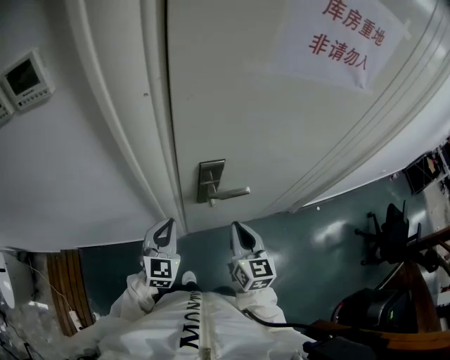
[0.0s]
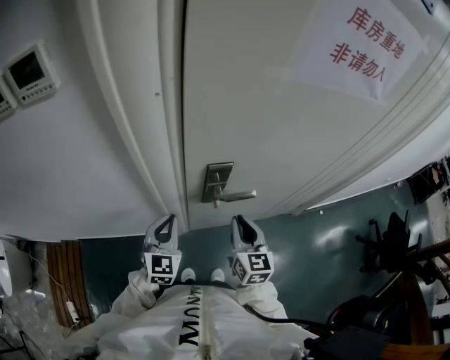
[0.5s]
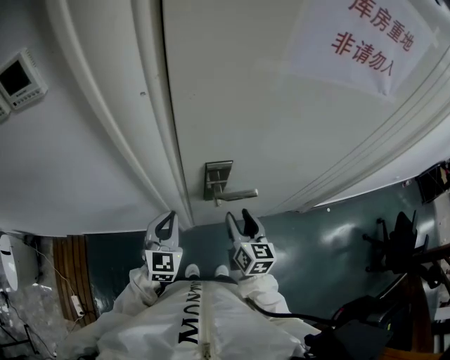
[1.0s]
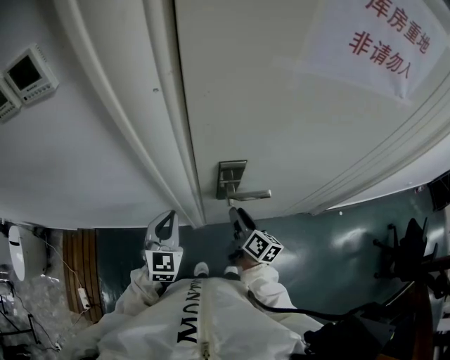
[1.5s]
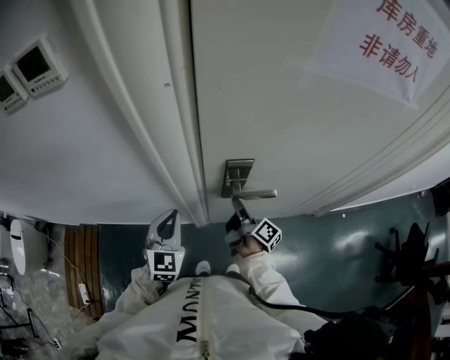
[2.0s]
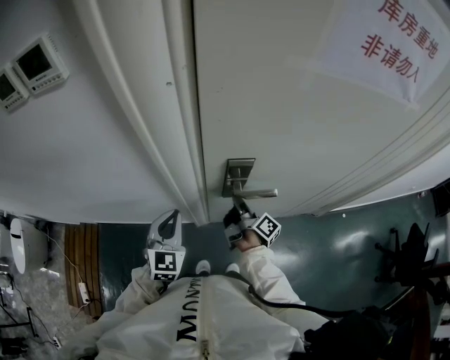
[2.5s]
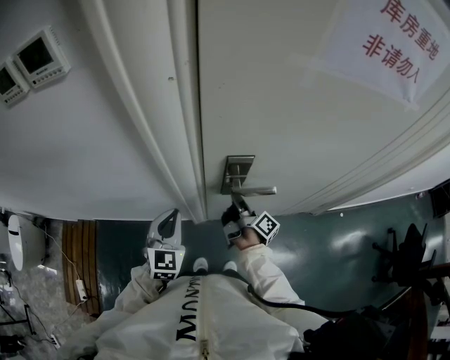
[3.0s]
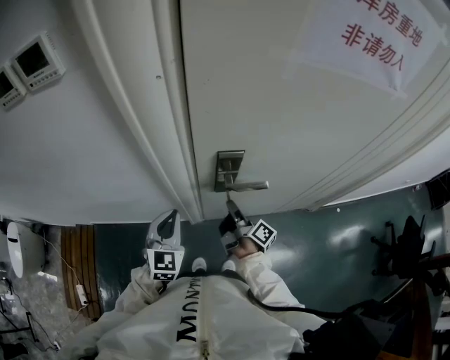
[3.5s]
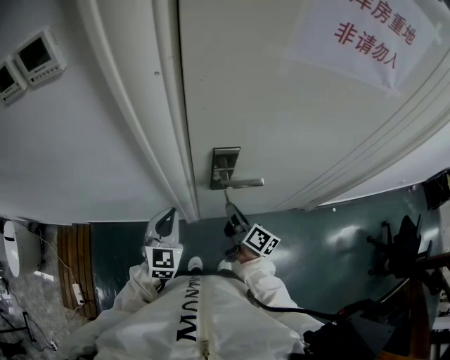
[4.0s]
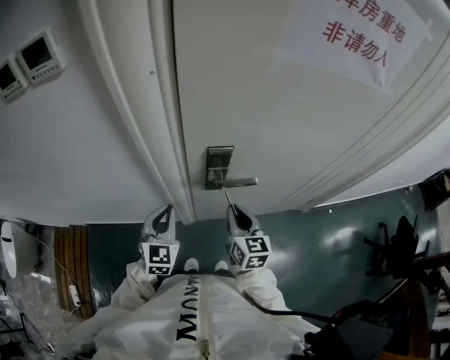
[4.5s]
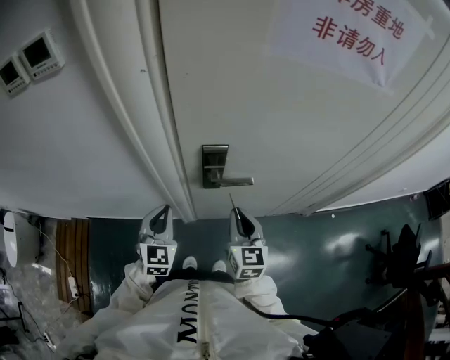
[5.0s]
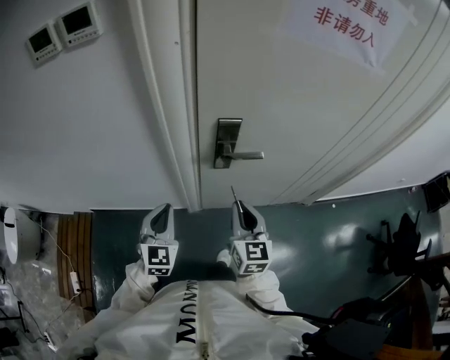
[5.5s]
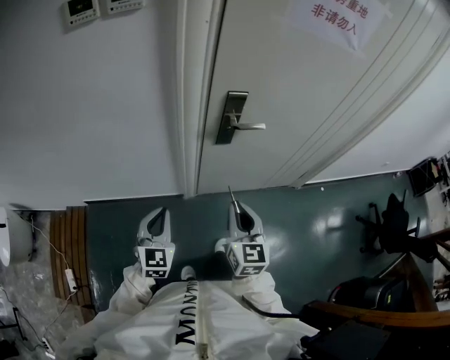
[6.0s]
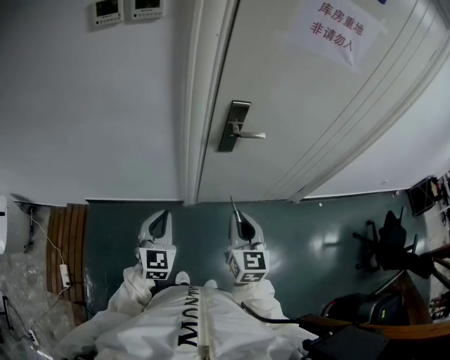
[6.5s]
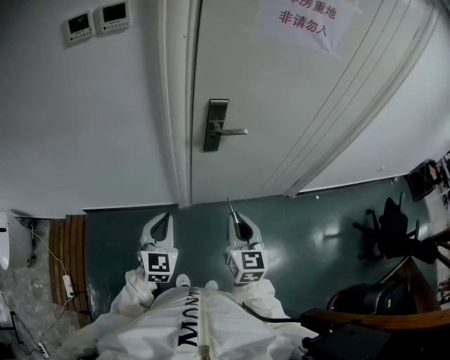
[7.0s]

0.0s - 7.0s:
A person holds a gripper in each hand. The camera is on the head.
0.0s - 2.0s: The right gripper shifts approximately 15 cm downward and forward, twists about 70 degrees clockwise, seen from behind, and opens.
2.0s - 3.5s: The right gripper closes its fingers.
3.5s - 5.0s: The right gripper goes approximately 10 cm upward and backward, and rolls counterclockwise, seen from behind, by roughly 80 degrees.
5.0s - 7.0s: The grippers both shift backward by approximately 25 cm.

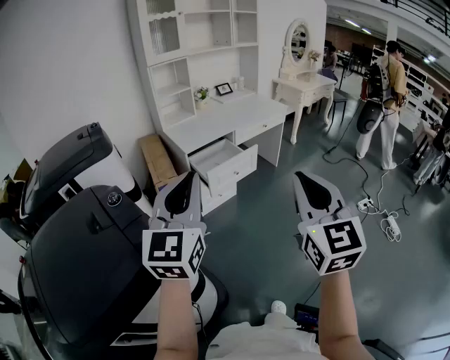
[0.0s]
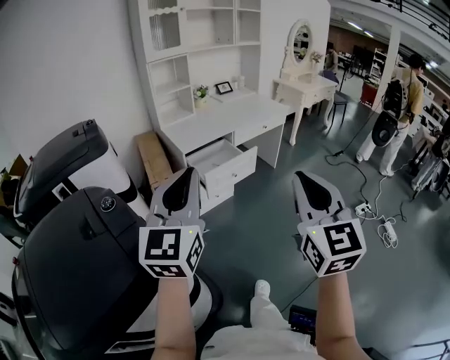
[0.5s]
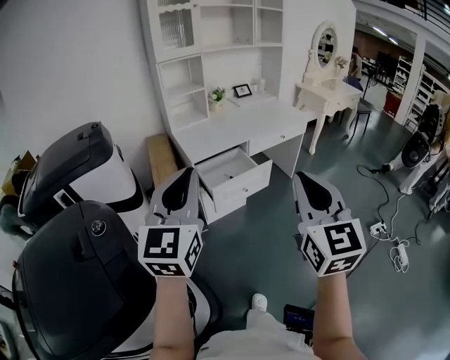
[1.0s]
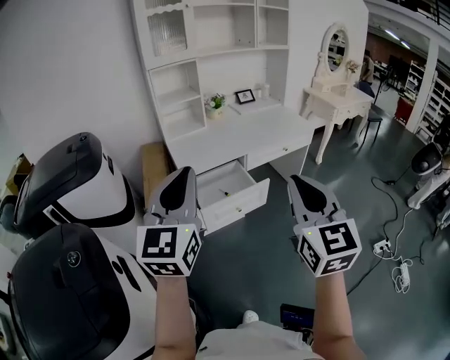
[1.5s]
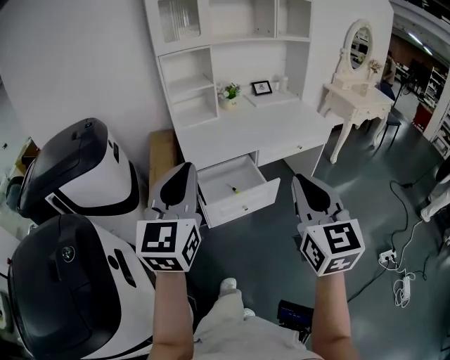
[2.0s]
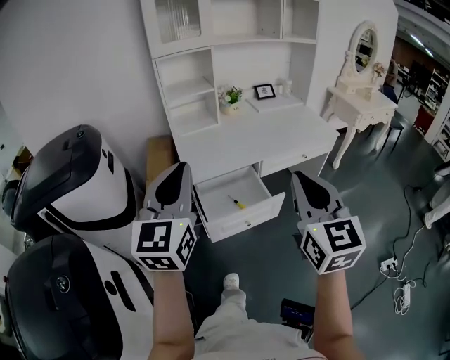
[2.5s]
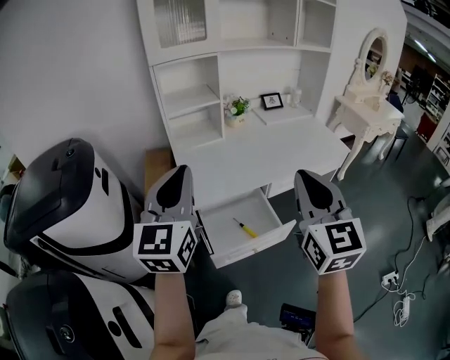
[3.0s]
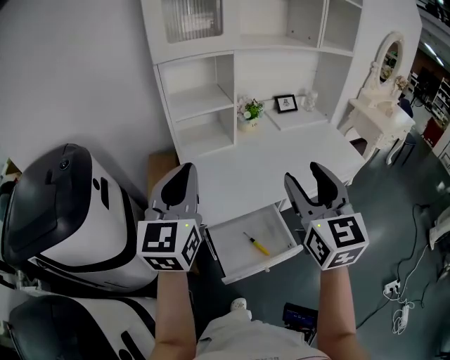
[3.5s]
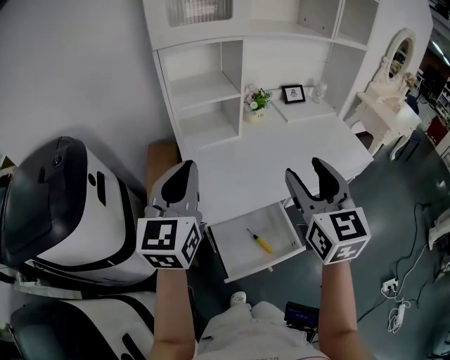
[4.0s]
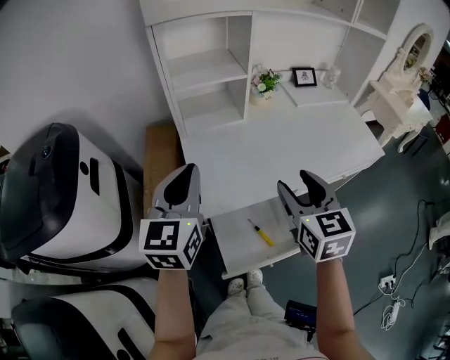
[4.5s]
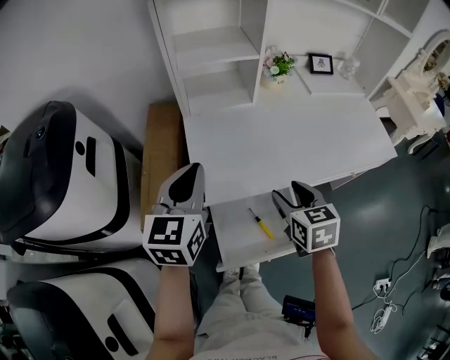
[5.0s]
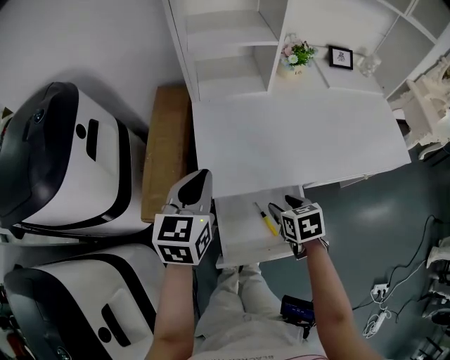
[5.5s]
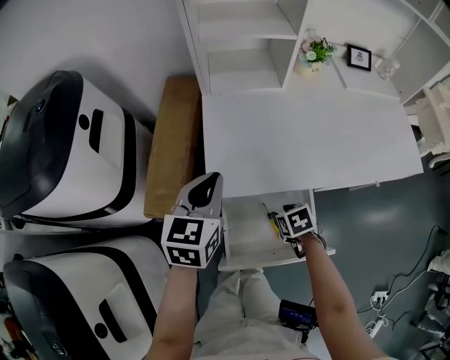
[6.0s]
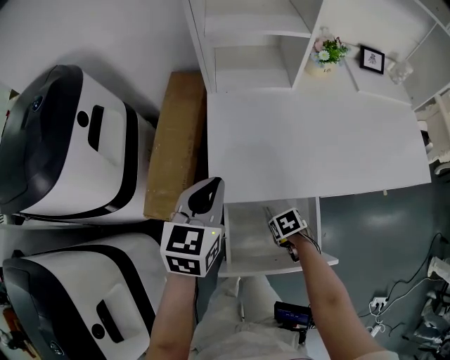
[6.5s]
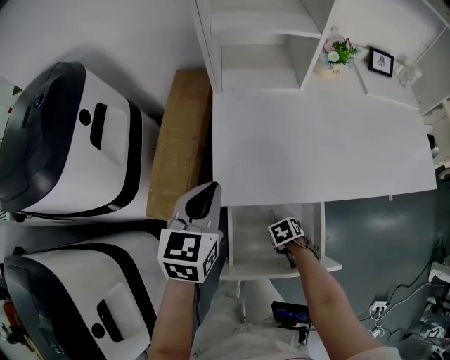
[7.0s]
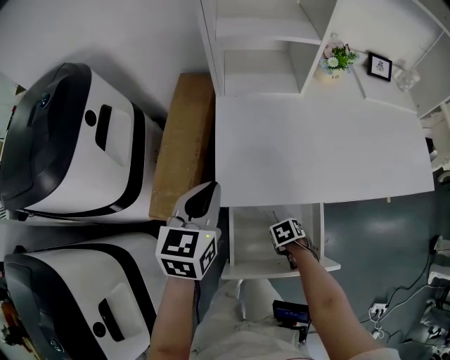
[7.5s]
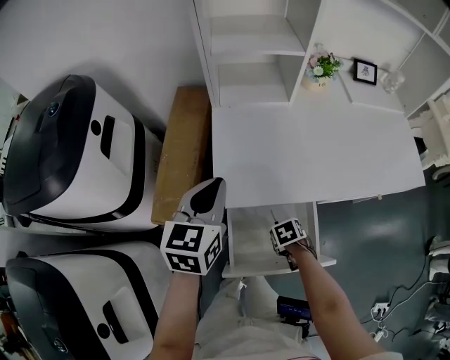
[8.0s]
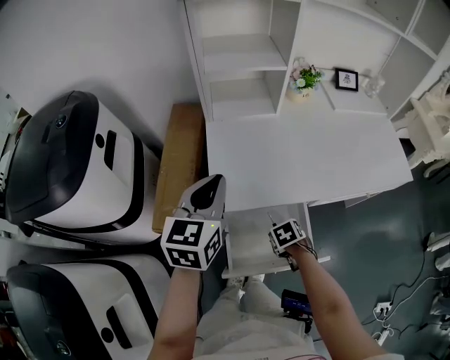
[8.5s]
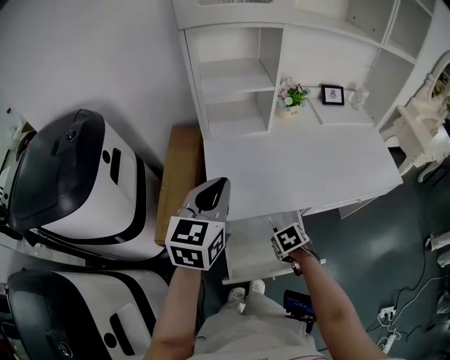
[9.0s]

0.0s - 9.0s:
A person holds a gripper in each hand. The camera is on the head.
0.0s - 2.0s: The grippers both shift forward by roughly 35 cm.
2.0s - 4.5s: The pair of grippers is taken forward, about 40 cm. The right gripper turns by some 20 degrees, and opens its fingers.
4.5s - 7.0s: The right gripper travels downward by approximately 50 cm, tilts its fingers some 60 degrees downward, and closes its fingers, while the left gripper moves downward, approximately 20 cm, and rotates roughly 20 degrees.
7.0s - 9.0s: The grippers both shift upward by some 15 cm.

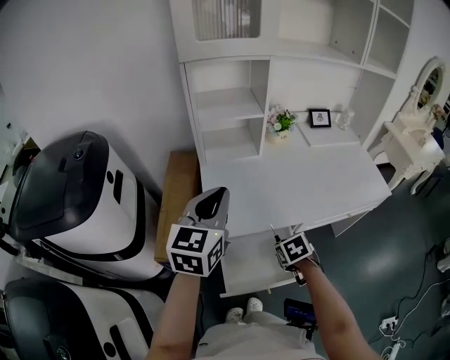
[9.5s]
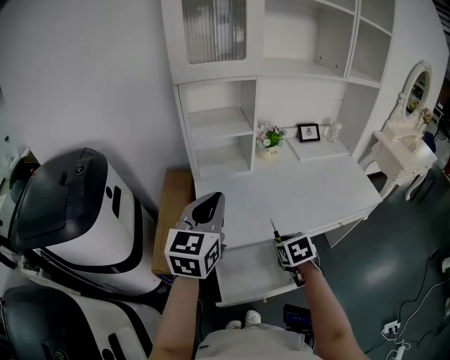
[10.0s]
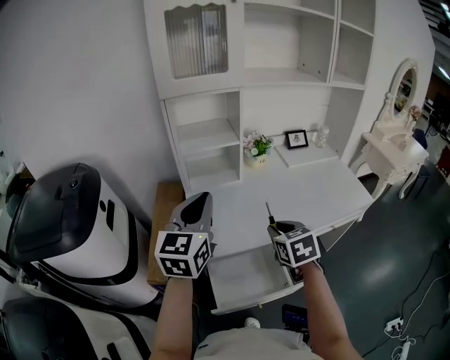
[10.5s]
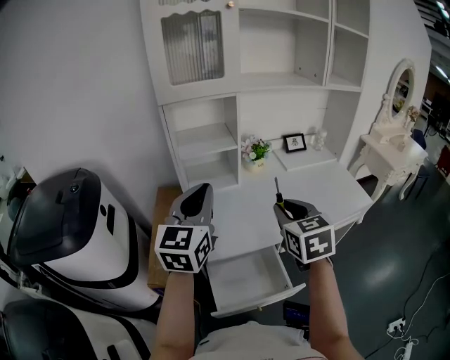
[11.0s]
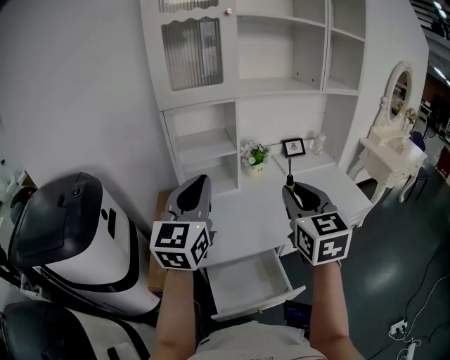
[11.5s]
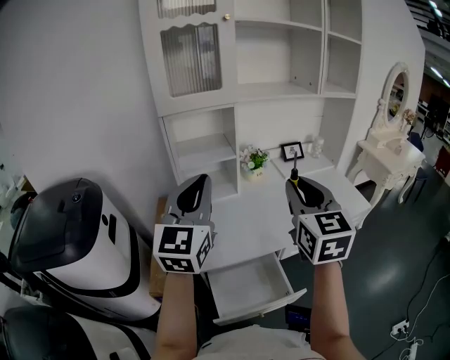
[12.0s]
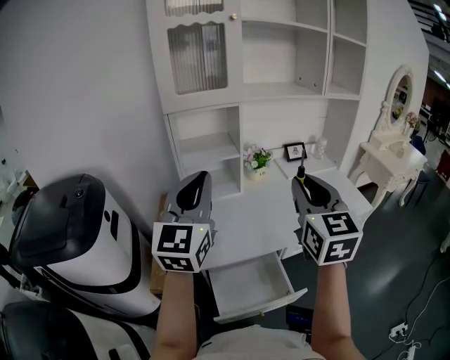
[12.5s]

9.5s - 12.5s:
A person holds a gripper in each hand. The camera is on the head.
9.5s - 11.0s: The right gripper goes approximately 30 cm upward, and angles its fingers upward, by approximately 40 degrees. The left gripper shifts roughly 10 cm upward.
11.0s - 12.5s: The left gripper is displaced upward by some 5 cm, while the right gripper shifts roughly 15 cm upward, and changes its angle by approximately 20 degrees.

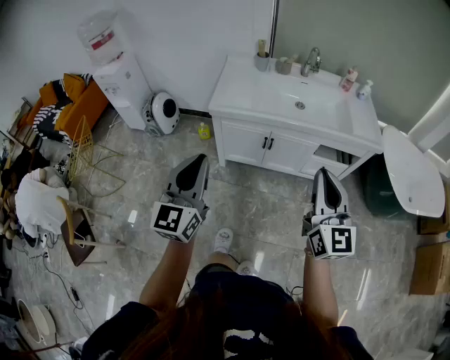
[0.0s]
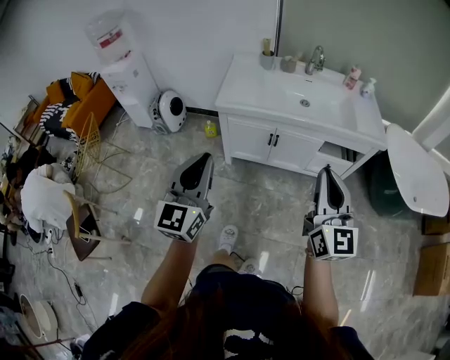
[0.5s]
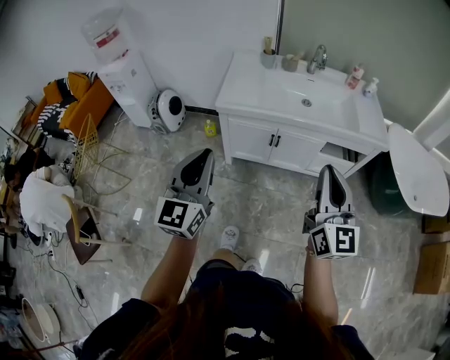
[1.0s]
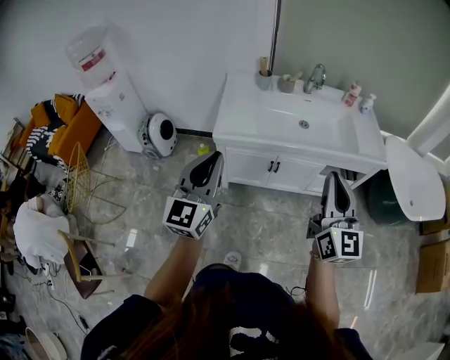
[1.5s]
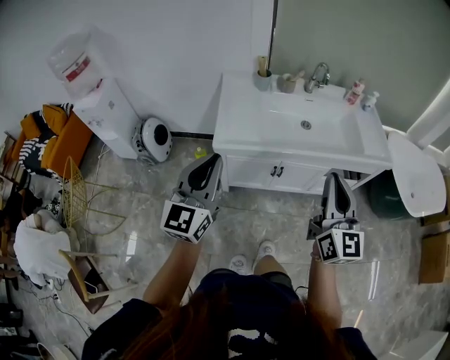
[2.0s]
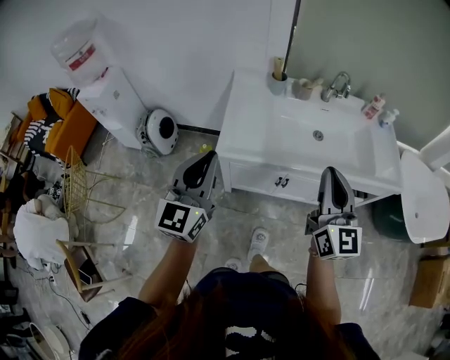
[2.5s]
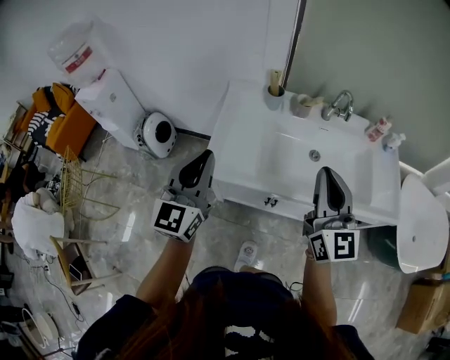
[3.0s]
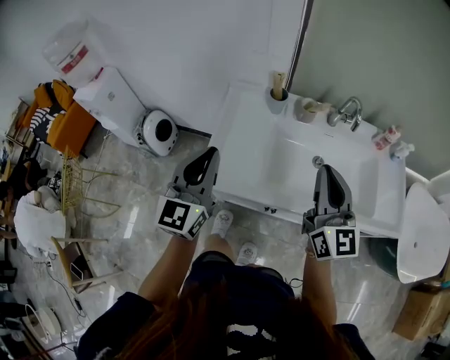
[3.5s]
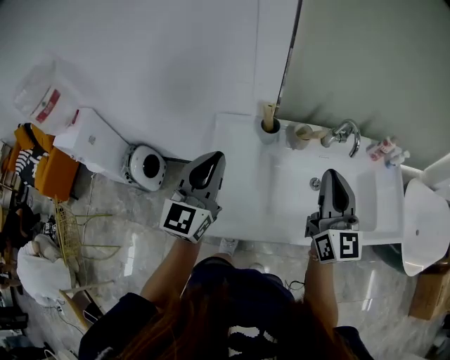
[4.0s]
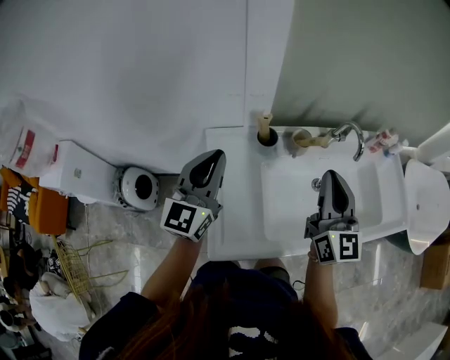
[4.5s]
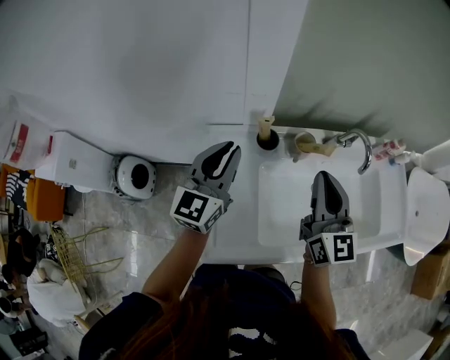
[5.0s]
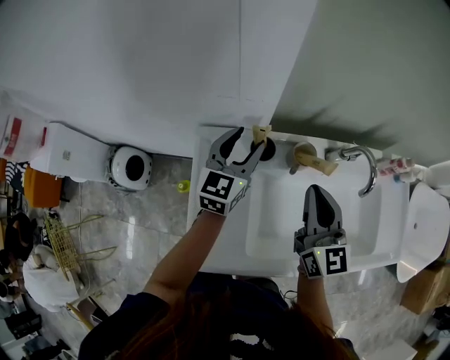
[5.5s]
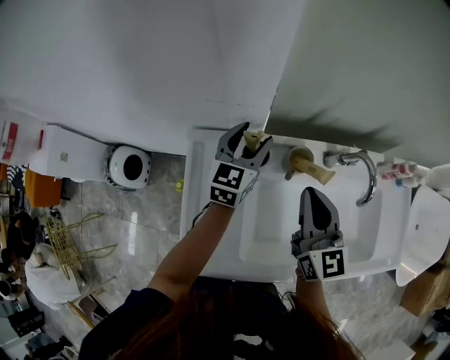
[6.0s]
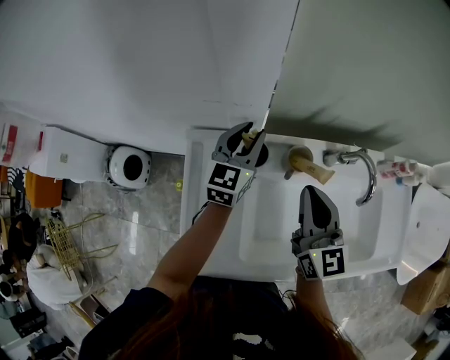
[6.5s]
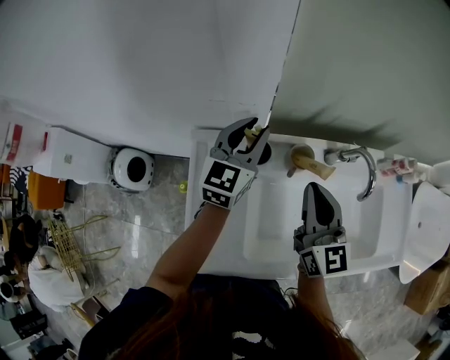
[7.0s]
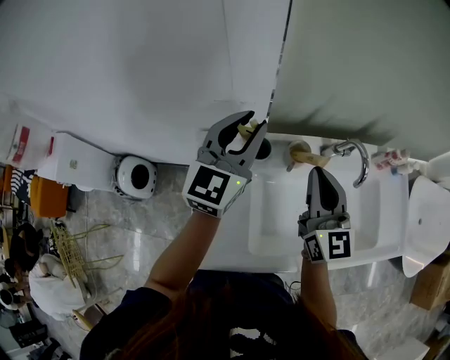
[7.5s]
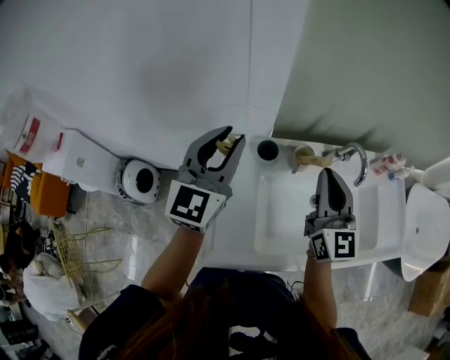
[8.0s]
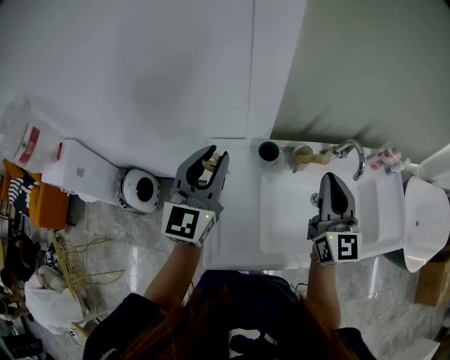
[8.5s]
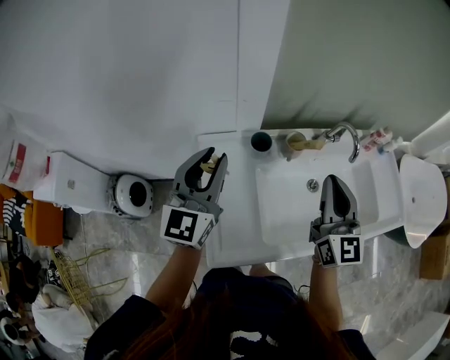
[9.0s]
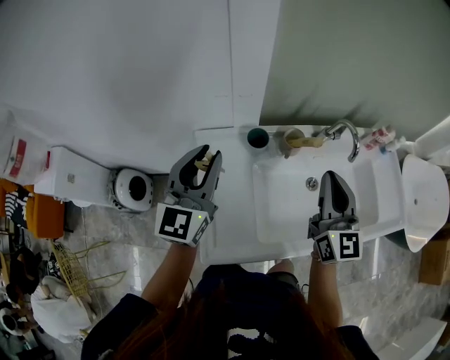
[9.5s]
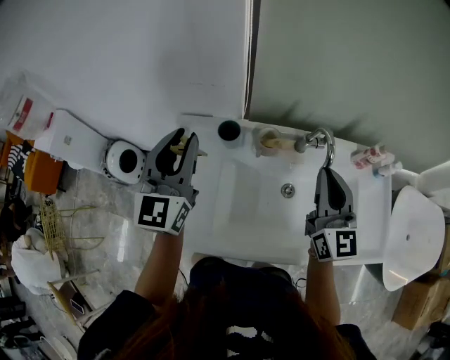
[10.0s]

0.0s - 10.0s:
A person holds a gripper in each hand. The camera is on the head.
0.0s - 2.0s: Both grippers travel together forward and to the left, about 20 cm.
2.0s - 4.0s: The pair of grippers is taken forward, approximately 50 cm.
4.0s - 6.0s: The right gripper goes about 25 cm forward and downward; the left gripper is displaced forward and downward by roughly 40 cm, turns by some 20 degrees, and opens.
6.0s - 8.0s: The right gripper goes some 10 cm upward and backward. The left gripper heads upward, backward and to the left, covering roughly 25 cm, rotates some 20 degrees, and closes.
8.0s - 10.0s: The left gripper travels to the right by roughly 5 cm, while the right gripper goes about 15 cm to the right.
